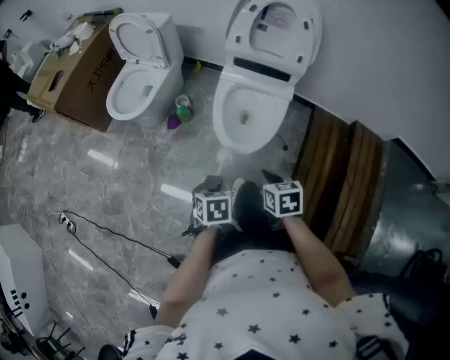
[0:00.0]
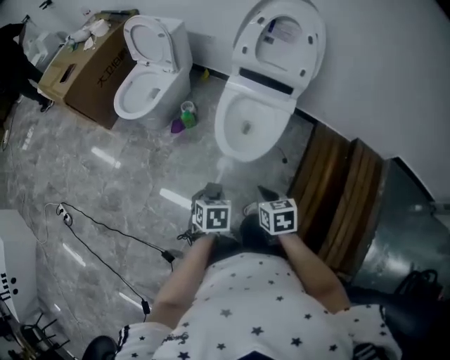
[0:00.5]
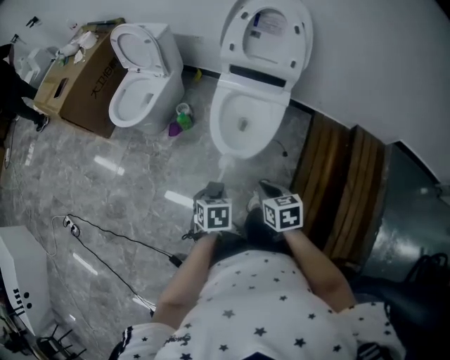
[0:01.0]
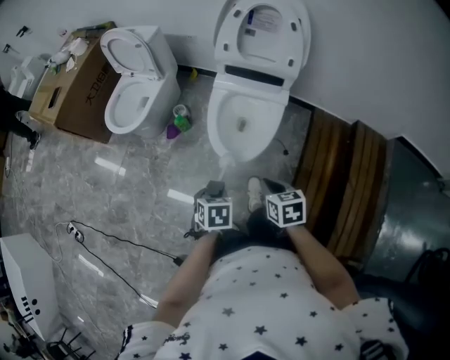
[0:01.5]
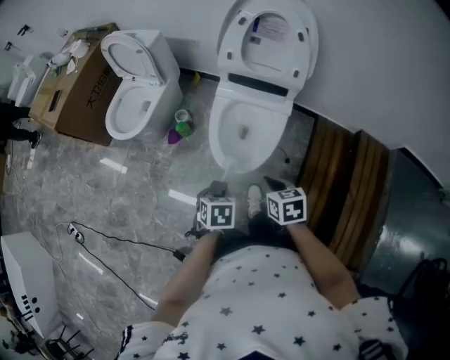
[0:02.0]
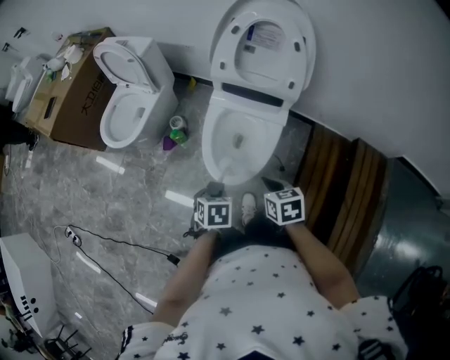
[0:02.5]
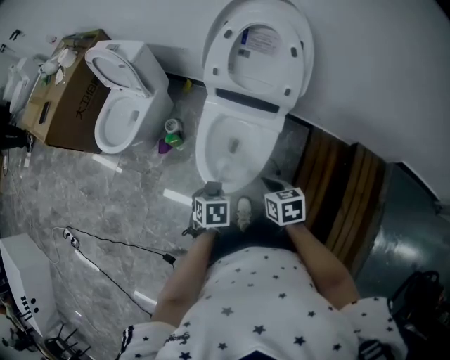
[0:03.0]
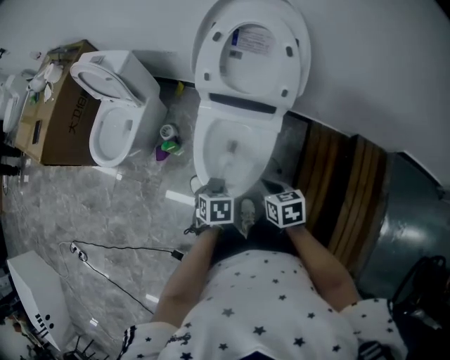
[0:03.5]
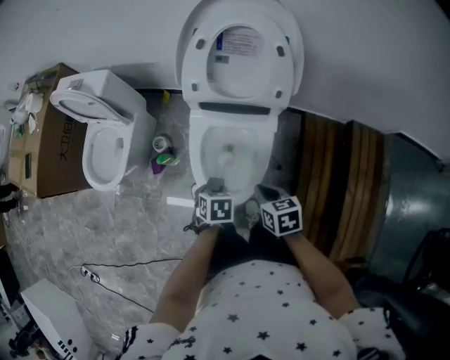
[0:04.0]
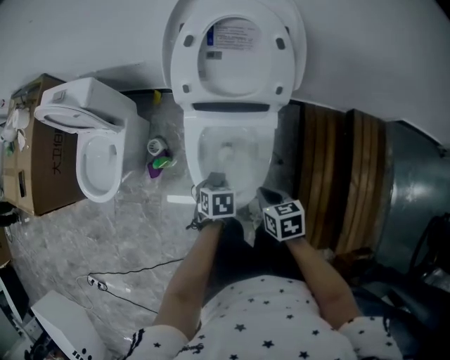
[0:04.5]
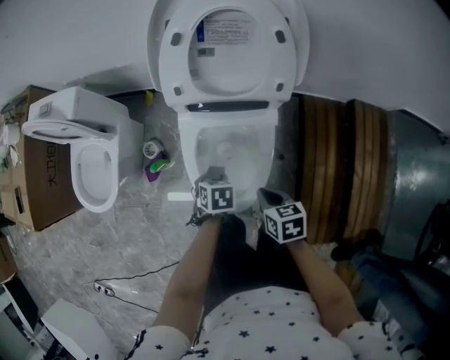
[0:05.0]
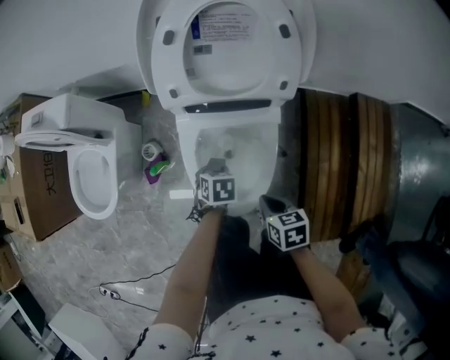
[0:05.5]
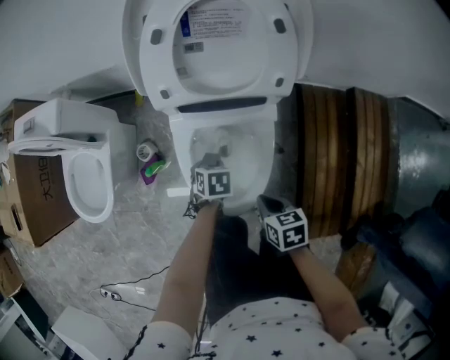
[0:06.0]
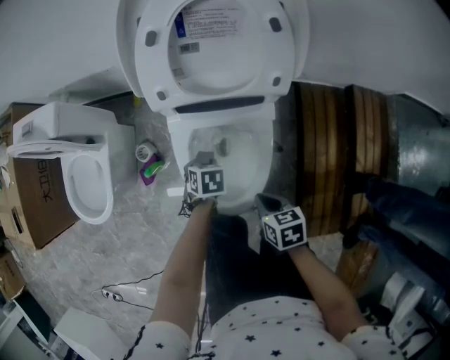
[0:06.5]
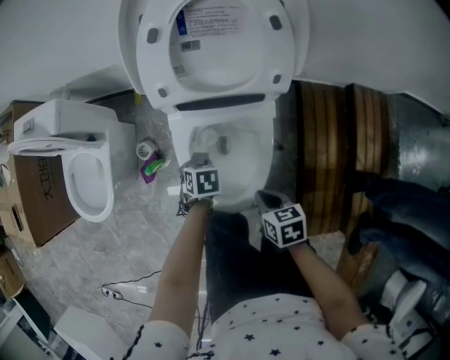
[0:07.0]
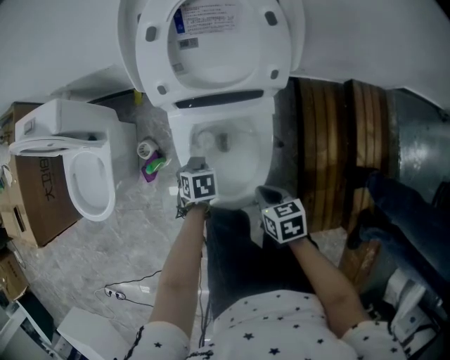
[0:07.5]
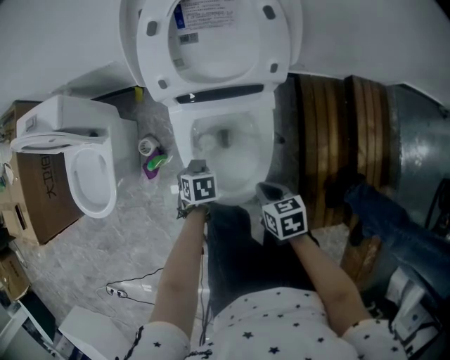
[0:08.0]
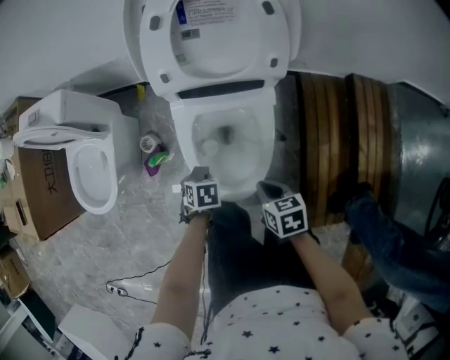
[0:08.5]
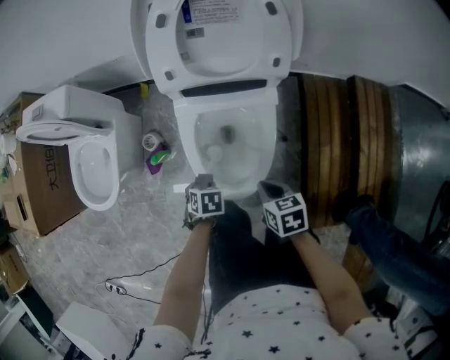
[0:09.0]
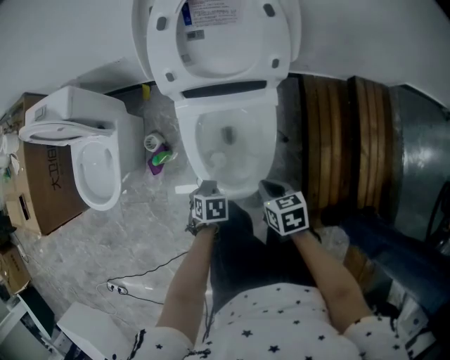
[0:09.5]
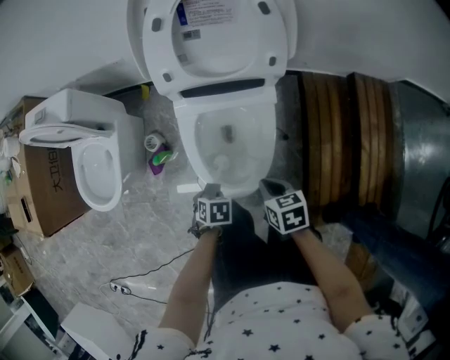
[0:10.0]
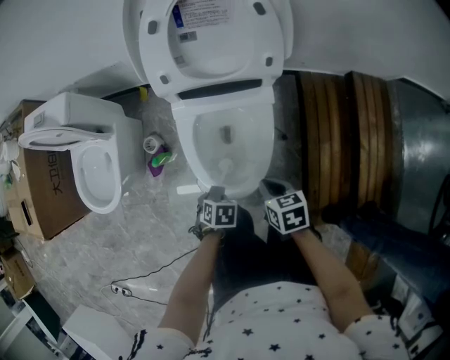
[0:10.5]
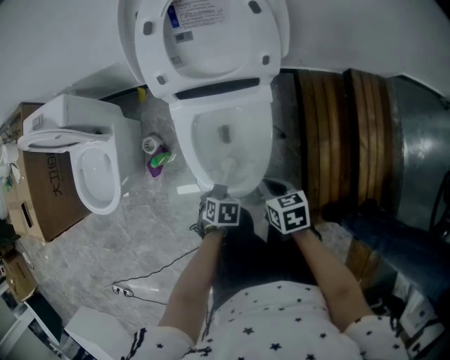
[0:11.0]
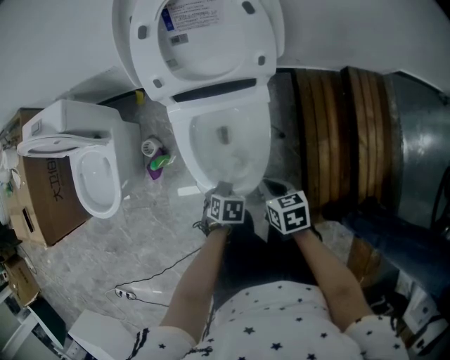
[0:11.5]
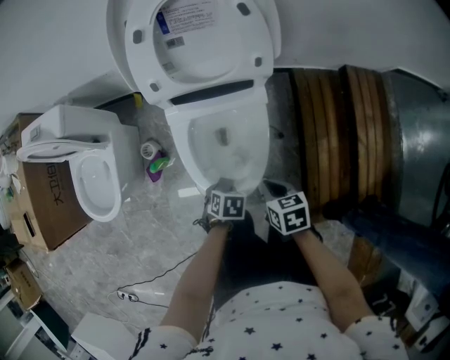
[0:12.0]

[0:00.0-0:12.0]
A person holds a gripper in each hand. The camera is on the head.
0:00.0 to 0:02.0: The right gripper shifts by roughly 10 cm.
0:02.0 to 0:04.0: The right gripper changes place by about 15 cm.
0:04.0 to 0:06.0: The right gripper goes roughly 10 cm downward.

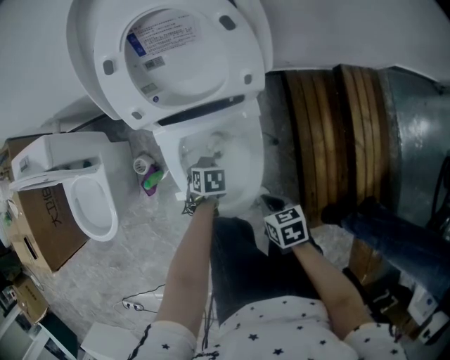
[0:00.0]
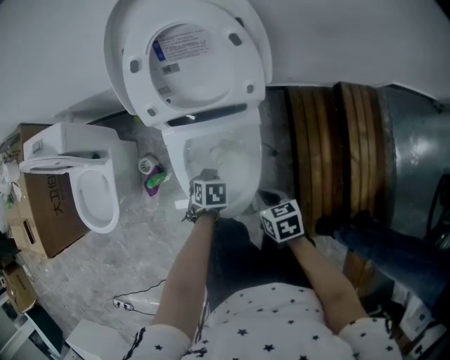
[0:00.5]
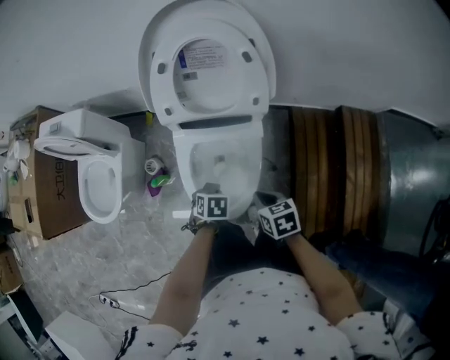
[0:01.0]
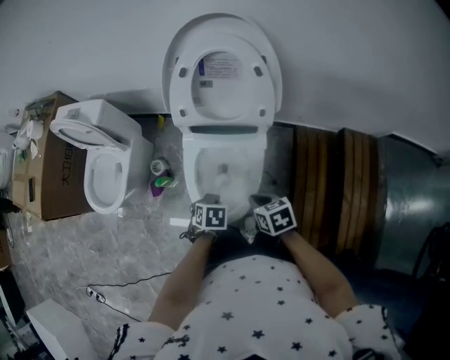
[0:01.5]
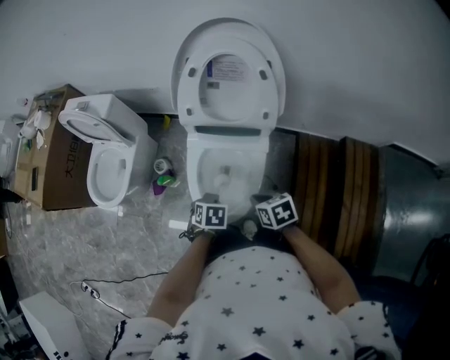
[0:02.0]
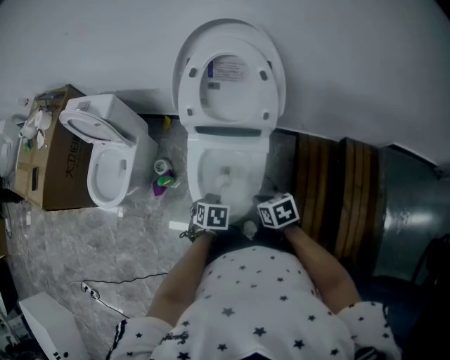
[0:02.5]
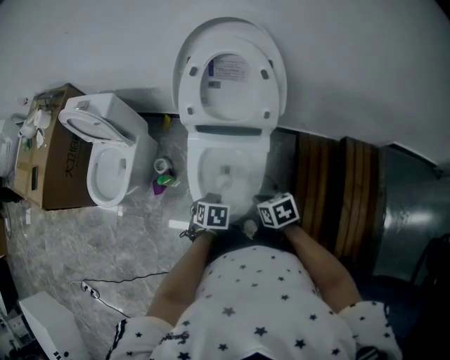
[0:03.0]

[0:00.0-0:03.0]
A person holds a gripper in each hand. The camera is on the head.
0:00.0 to 0:01.5: The right gripper goes some 10 cm upward.

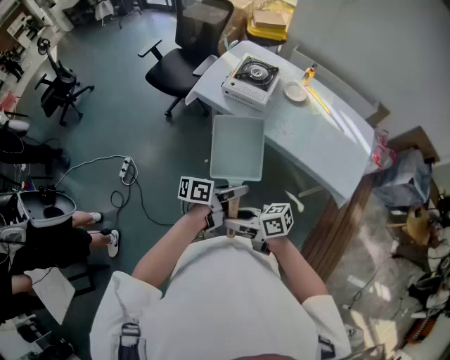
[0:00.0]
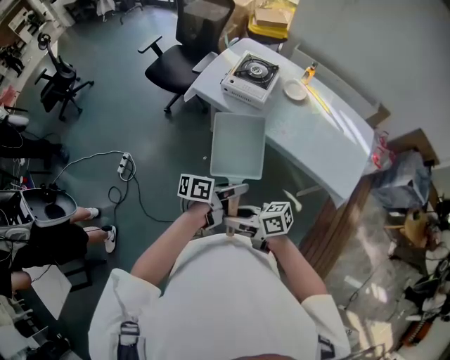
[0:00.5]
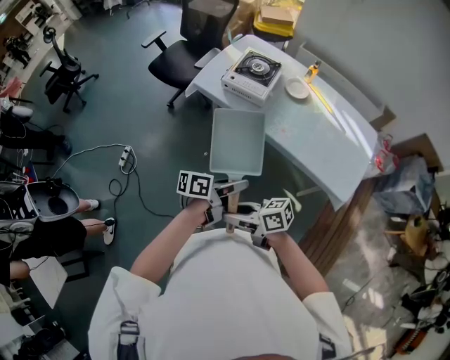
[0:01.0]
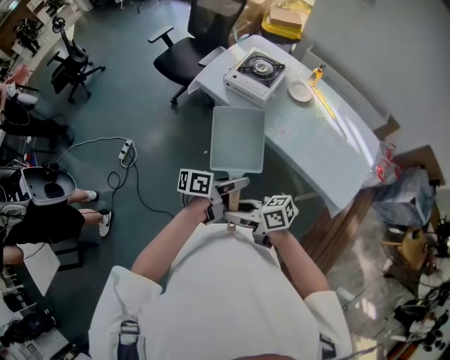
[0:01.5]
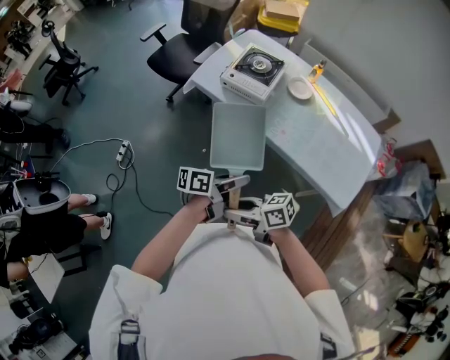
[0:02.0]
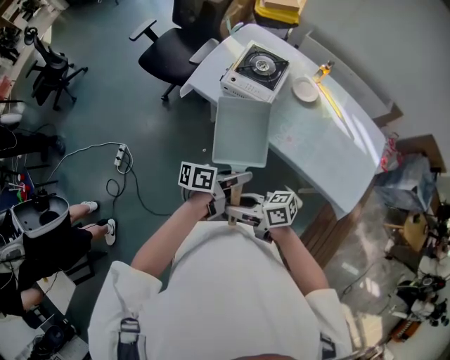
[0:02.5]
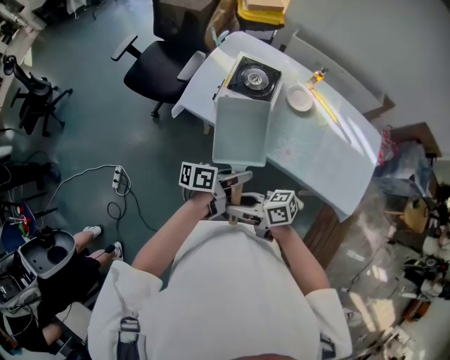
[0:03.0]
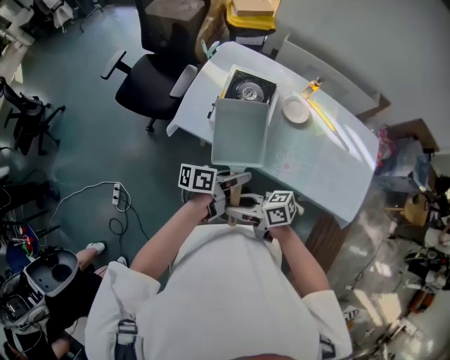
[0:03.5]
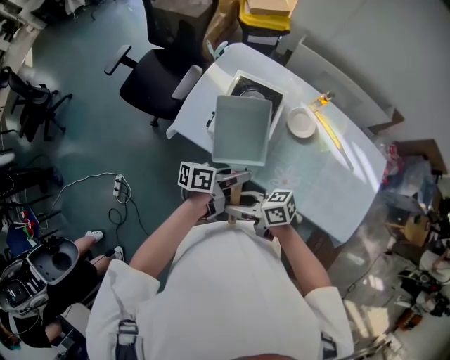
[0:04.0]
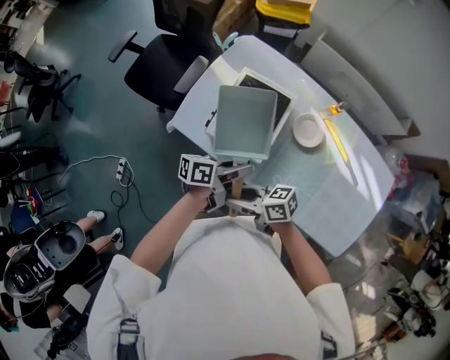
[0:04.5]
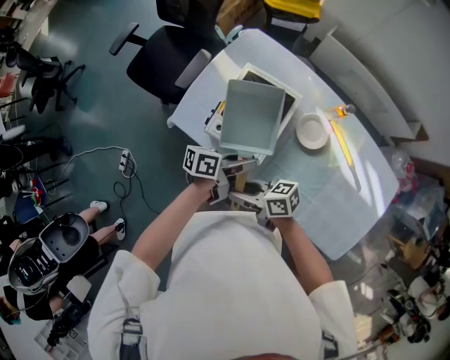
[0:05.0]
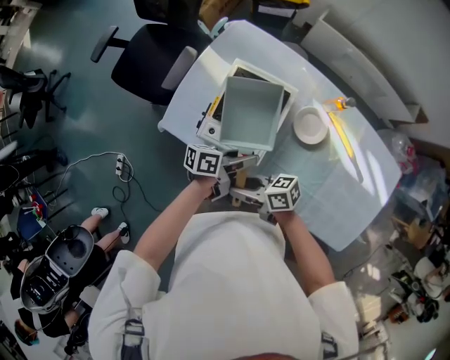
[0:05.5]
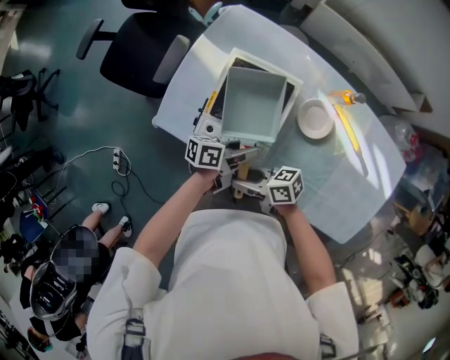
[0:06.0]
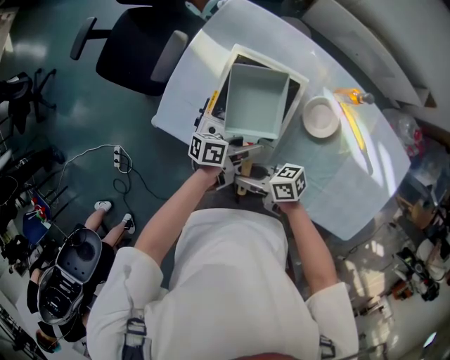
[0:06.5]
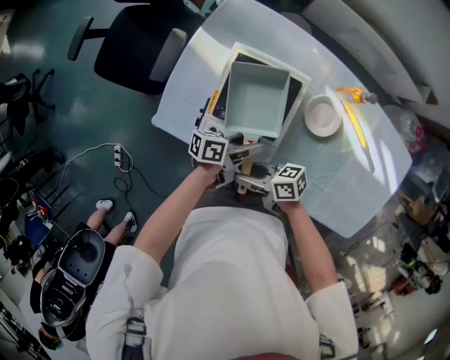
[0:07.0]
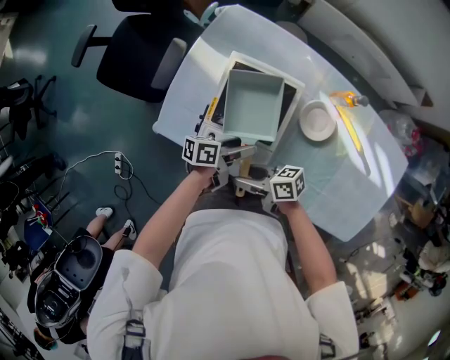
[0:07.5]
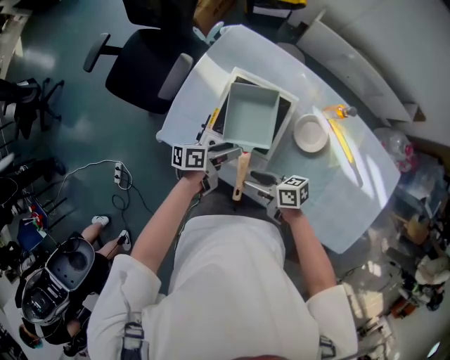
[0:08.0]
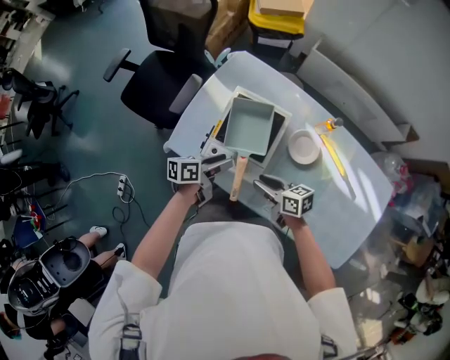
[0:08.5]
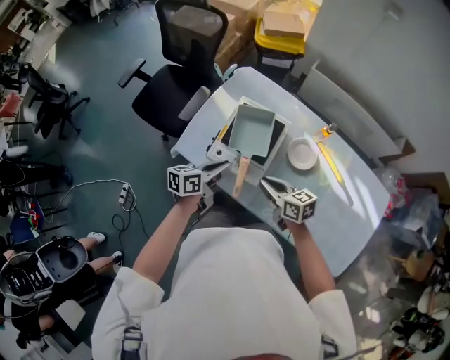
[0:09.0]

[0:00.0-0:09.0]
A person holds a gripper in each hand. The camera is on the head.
0:00.0 to 0:02.0: The right gripper moves some 10 cm, while the left gripper changes place by roughly 10 cm.
0:02.0 to 0:04.5: The left gripper changes place by some 40 cm; the right gripper moves about 40 cm.
0:04.5 to 0:07.0: The two grippers go approximately 15 cm downward.
0:07.0 to 0:09.0: The right gripper ends up approximately 15 cm from where it was, swivels some 30 degrees, and closes up. Meanwhile the left gripper travels upward by some 15 cm, turns by about 40 degrees, and closes its fingers.

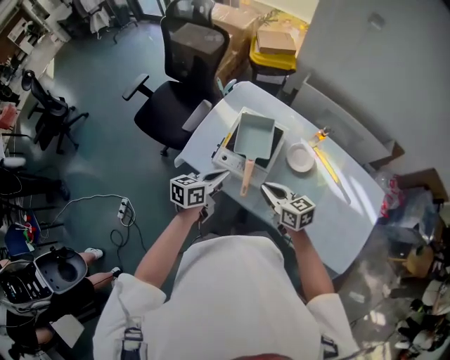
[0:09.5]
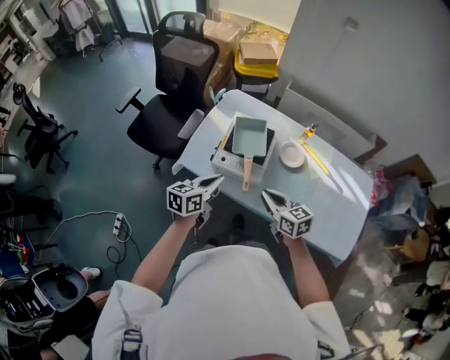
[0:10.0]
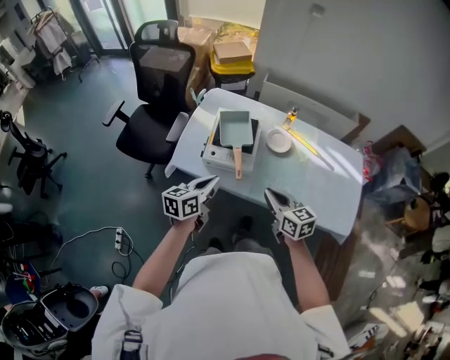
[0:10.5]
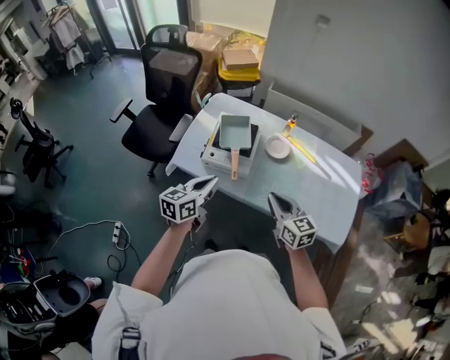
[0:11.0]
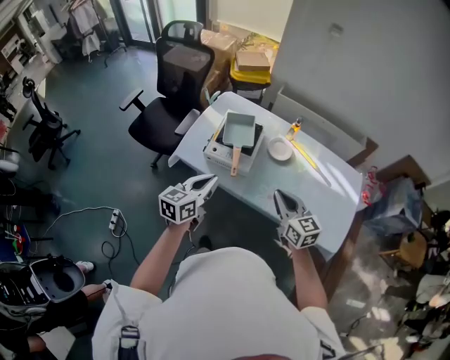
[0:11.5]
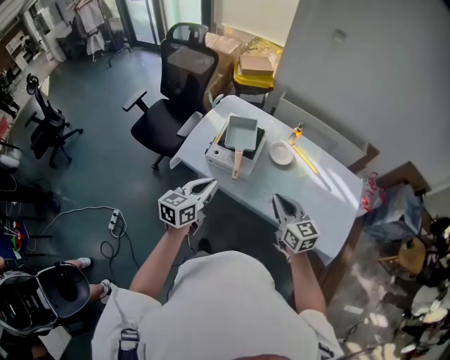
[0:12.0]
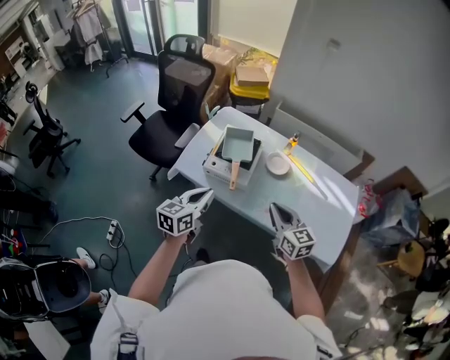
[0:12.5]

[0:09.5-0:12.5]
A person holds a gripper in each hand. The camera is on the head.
0:09.5 to 0:11.0: The right gripper is displaced backward, upward and to the right by some 20 cm, and turns by roughly 30 degrees. The left gripper shifts roughly 15 cm backward and upward.
0:11.0 to 0:12.5: The grippers move only a little.
